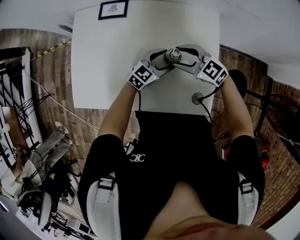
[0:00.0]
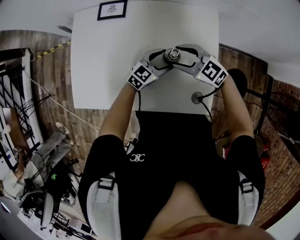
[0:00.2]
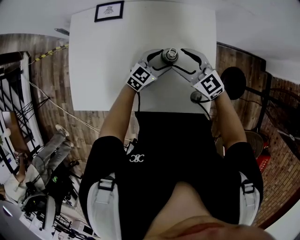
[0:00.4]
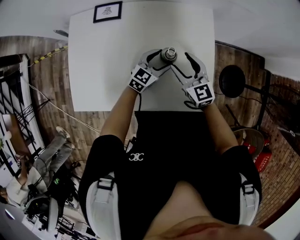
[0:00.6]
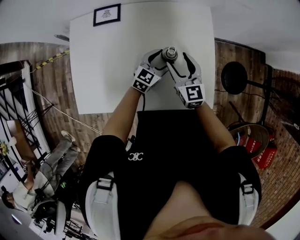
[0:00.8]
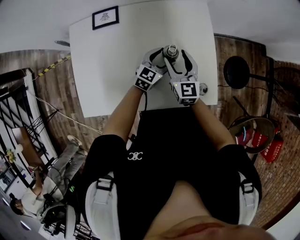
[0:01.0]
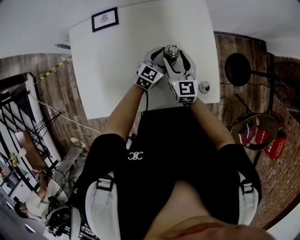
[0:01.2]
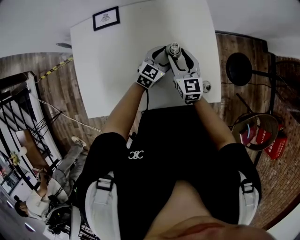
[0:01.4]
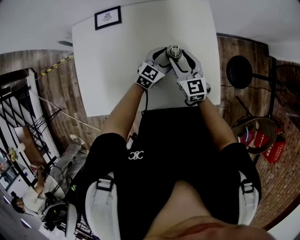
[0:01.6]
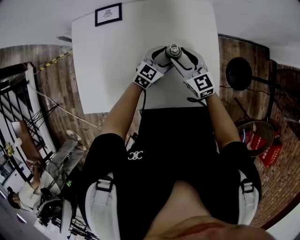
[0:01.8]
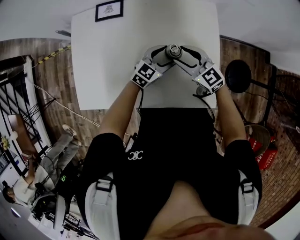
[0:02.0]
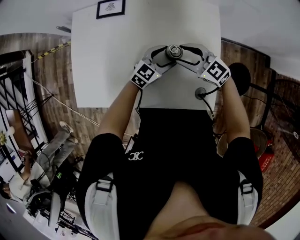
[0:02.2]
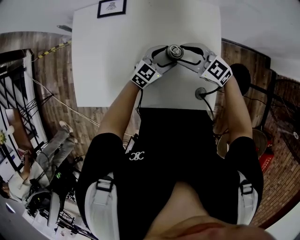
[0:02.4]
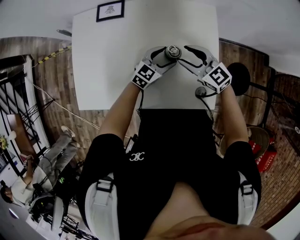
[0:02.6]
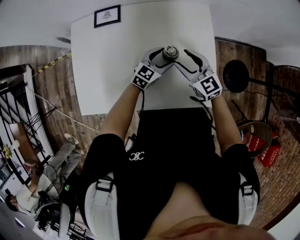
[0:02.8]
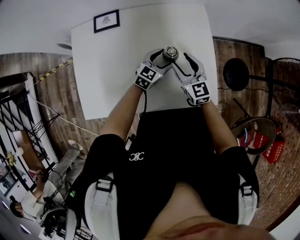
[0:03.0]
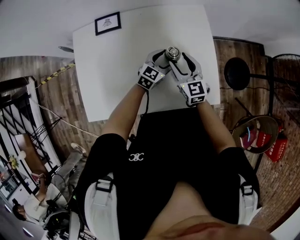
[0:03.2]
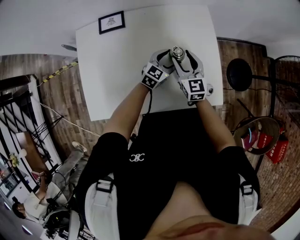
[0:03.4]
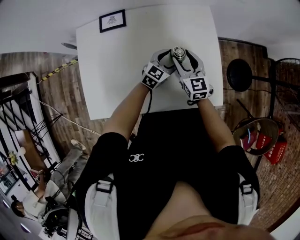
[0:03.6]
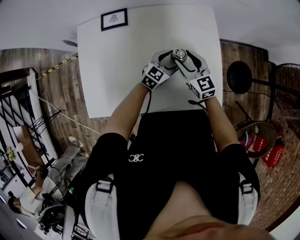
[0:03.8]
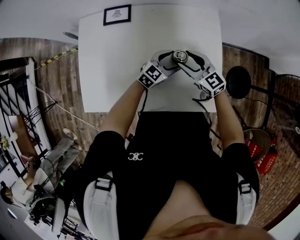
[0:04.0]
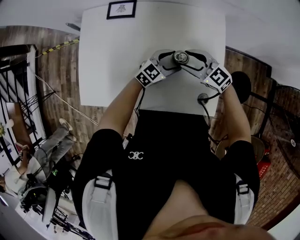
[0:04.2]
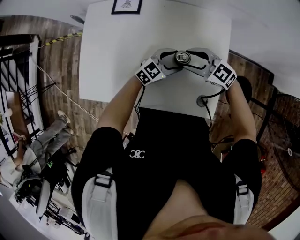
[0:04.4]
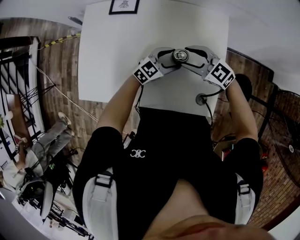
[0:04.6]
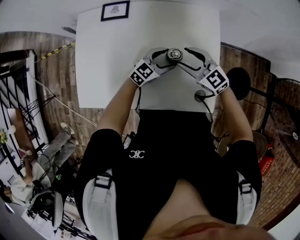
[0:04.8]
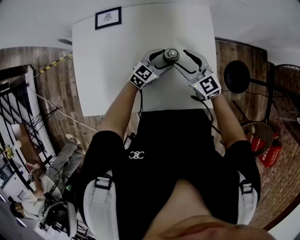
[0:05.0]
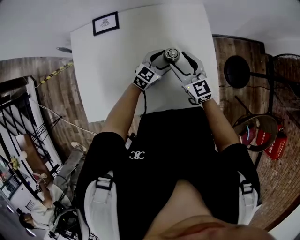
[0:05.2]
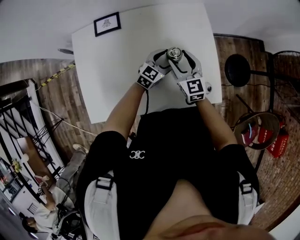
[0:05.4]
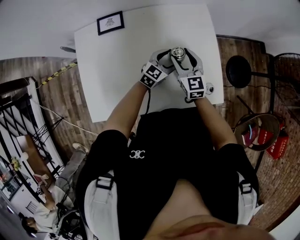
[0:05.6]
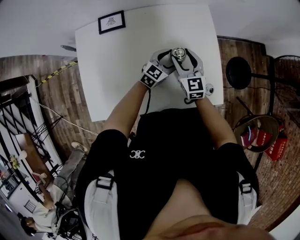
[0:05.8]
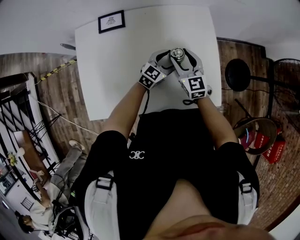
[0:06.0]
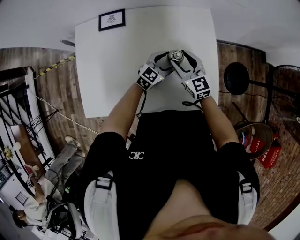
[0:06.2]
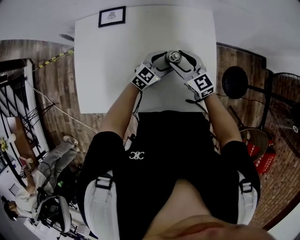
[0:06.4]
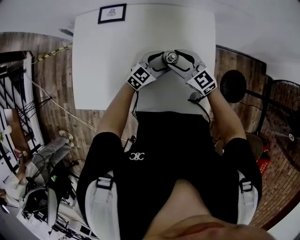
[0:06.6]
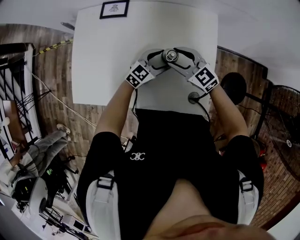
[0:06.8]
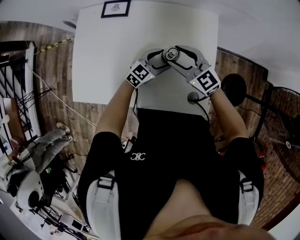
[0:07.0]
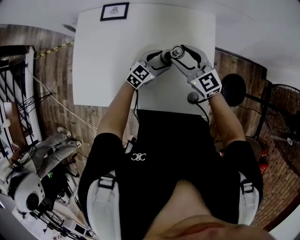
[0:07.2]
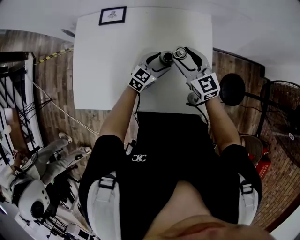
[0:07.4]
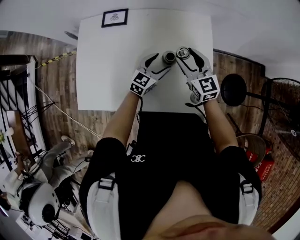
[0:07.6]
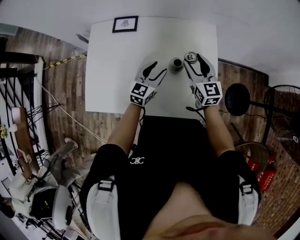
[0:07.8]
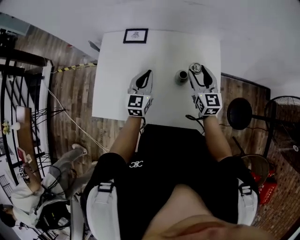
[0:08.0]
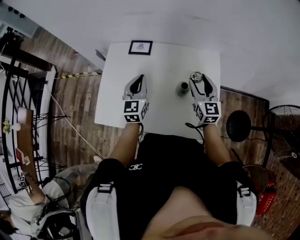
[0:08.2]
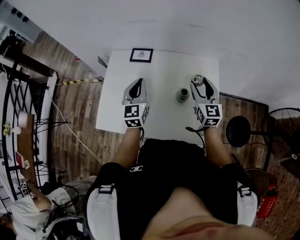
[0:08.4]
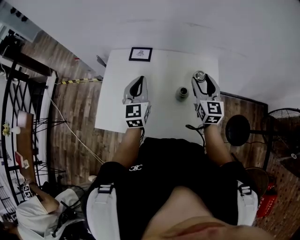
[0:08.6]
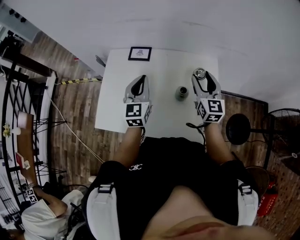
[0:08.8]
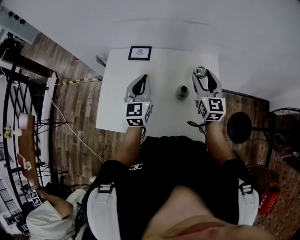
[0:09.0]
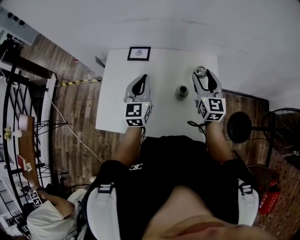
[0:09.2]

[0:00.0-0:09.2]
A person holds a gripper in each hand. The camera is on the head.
0:00.0 to 0:01.6: The right gripper changes its angle by approximately 50 degrees.
0:03.0 to 0:04.6: The right gripper turns by some 50 degrees.
0:04.6 to 0:06.2: The right gripper turns by approximately 40 degrees.
0:06.2 to 0:07.6: The right gripper is displaced upward by about 5 cm.
0:07.6 to 0:09.2: The left gripper heads upward and to the left, covering roughly 25 cm, swivels about 40 degrees, and closes up; the right gripper travels upward by approximately 10 cm.

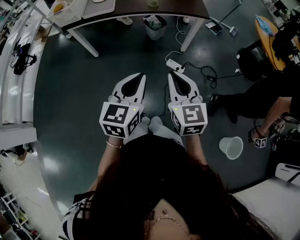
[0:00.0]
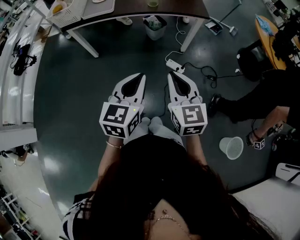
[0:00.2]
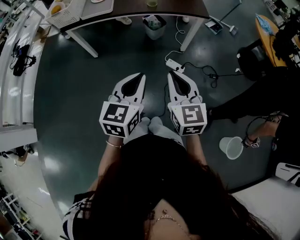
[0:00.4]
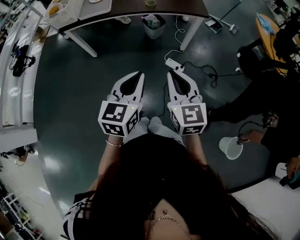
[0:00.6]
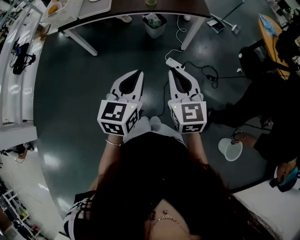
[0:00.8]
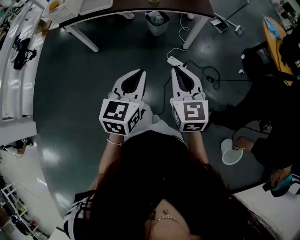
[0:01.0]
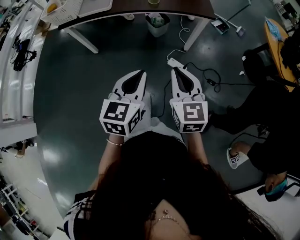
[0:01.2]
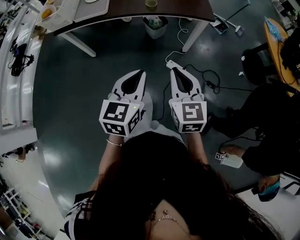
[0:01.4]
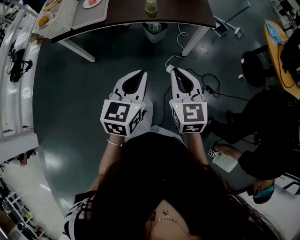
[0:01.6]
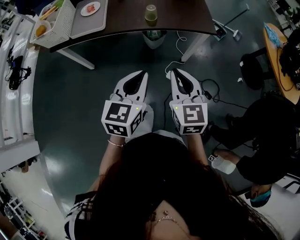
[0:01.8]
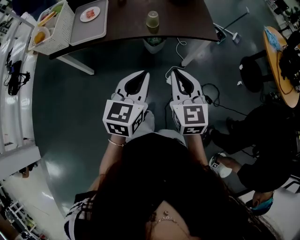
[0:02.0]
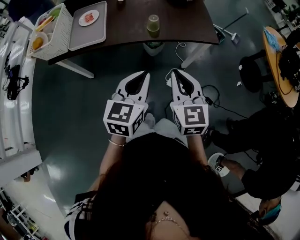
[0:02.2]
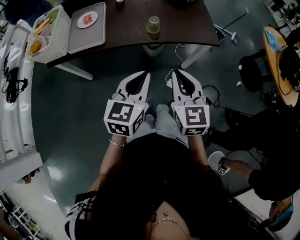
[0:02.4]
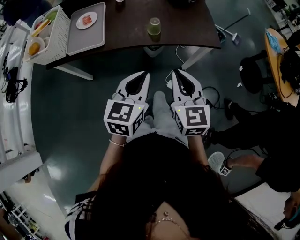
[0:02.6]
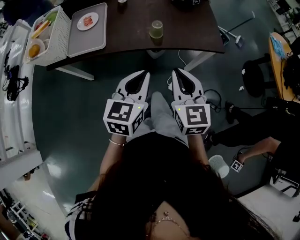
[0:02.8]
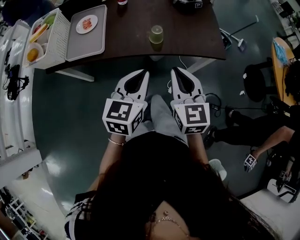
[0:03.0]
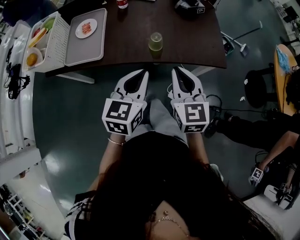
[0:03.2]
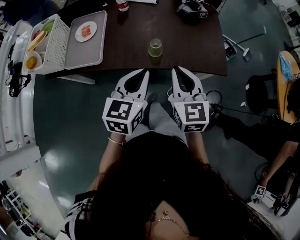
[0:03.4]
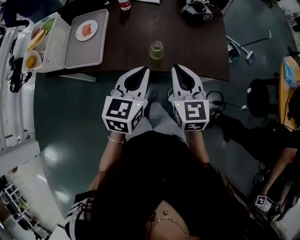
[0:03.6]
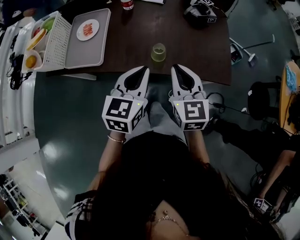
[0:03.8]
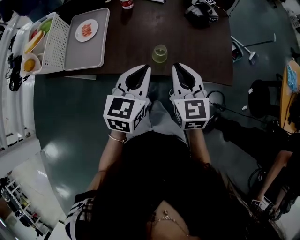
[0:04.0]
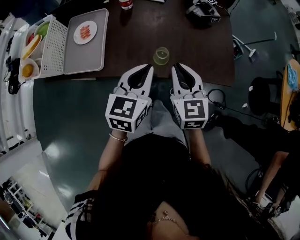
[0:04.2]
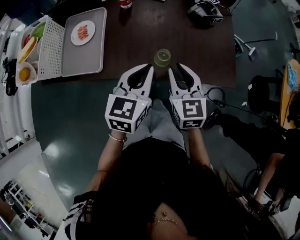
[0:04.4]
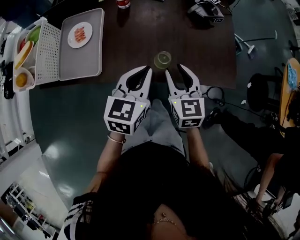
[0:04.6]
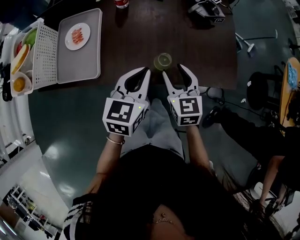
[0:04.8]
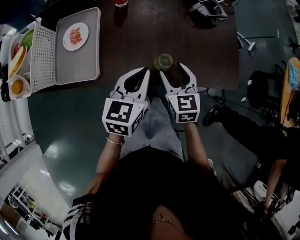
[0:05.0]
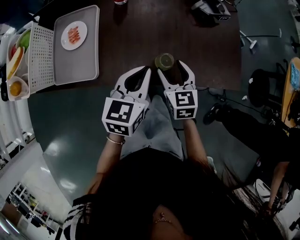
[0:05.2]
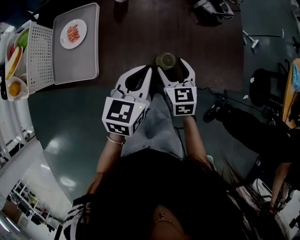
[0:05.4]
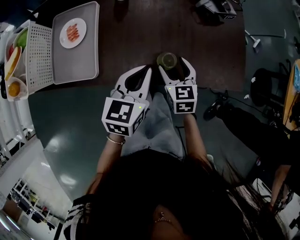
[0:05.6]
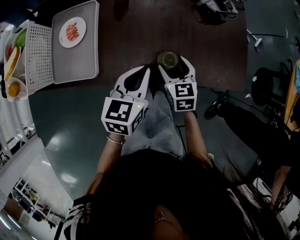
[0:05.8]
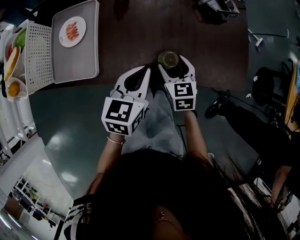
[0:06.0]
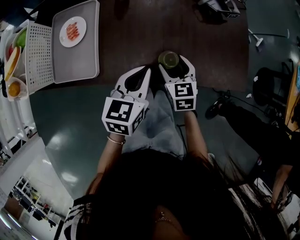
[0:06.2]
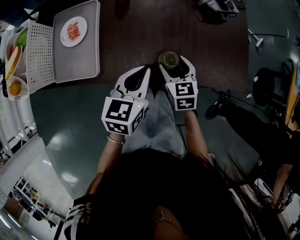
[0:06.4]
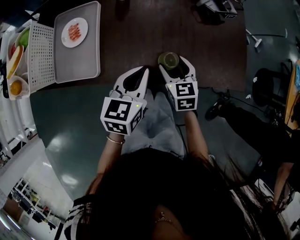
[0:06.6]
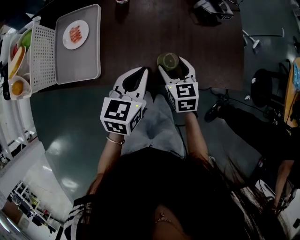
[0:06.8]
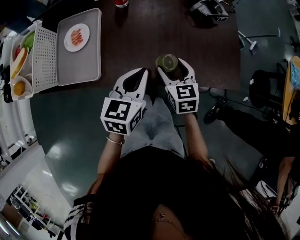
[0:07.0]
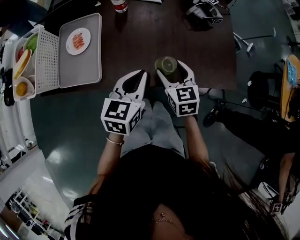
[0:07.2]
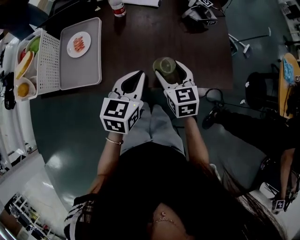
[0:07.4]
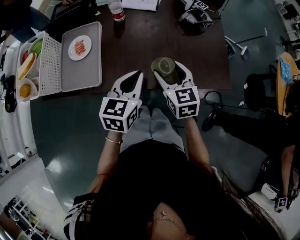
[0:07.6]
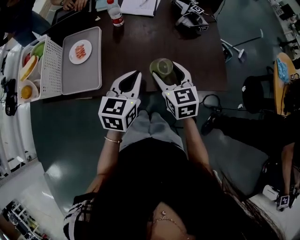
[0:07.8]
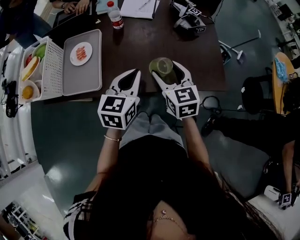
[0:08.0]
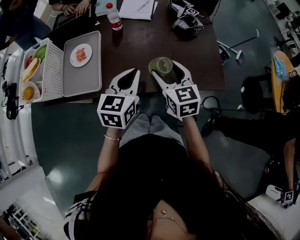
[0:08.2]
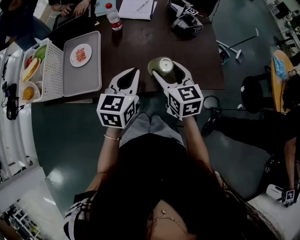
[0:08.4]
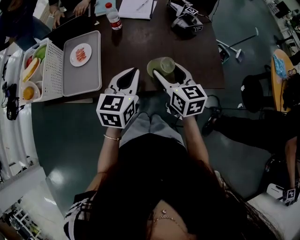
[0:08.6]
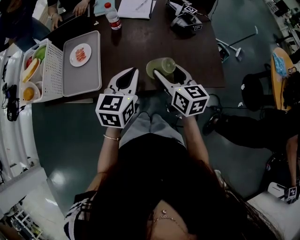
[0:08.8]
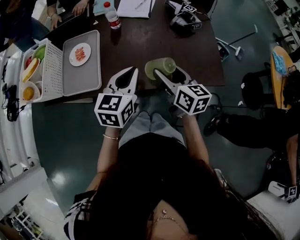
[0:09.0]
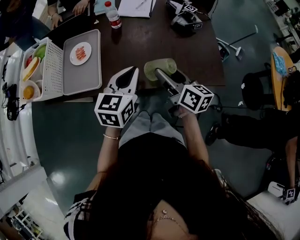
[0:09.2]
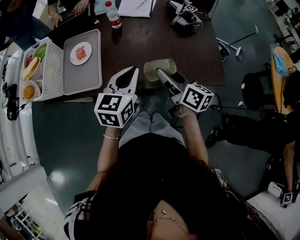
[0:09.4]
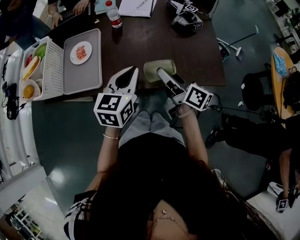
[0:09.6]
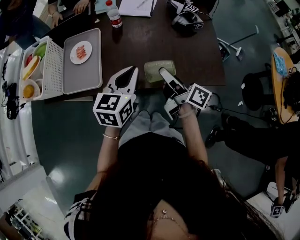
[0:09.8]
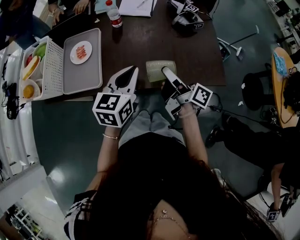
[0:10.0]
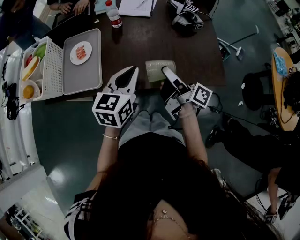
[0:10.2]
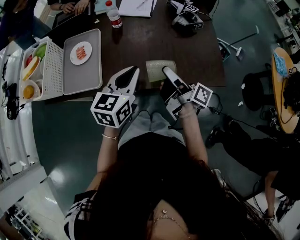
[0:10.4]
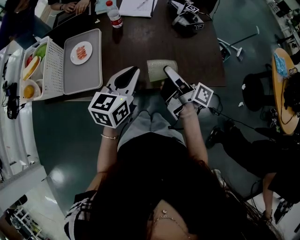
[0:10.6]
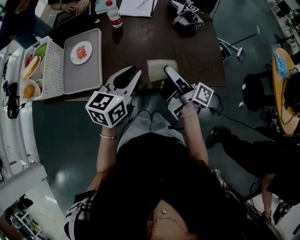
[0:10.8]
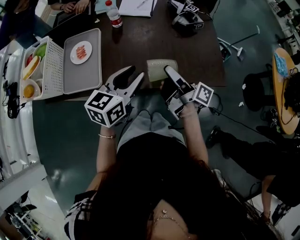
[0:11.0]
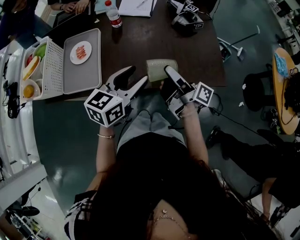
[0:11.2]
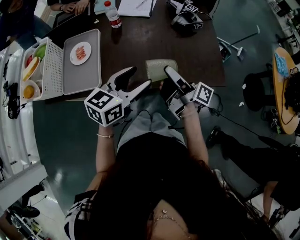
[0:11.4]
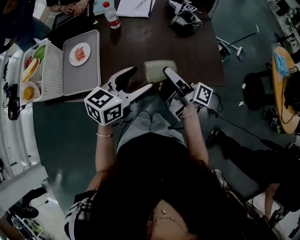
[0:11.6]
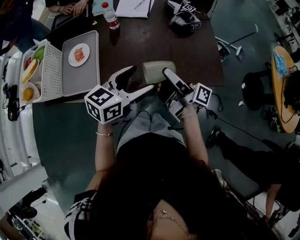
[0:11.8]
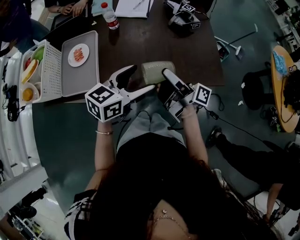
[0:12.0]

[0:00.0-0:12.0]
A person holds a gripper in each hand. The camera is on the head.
0:00.0 to 0:01.6: Both grippers move forward, roughly 20 cm.
0:01.6 to 0:03.0: Both grippers move forward, some 25 cm.
0:03.0 to 0:04.4: Both grippers travel together forward, about 20 cm.
0:04.4 to 0:06.0: The right gripper goes some 15 cm downward and forward, and opens up. Meanwhile the left gripper shifts approximately 10 cm downward.
0:06.0 to 0:07.6: The right gripper moves upward, some 15 cm. The left gripper heads upward, covering approximately 5 cm.
0:07.6 to 0:09.0: The right gripper turns by roughly 30 degrees.
0:09.0 to 0:10.4: The right gripper twists approximately 50 degrees clockwise, seen from behind.
0:10.4 to 0:12.0: The left gripper shifts about 5 cm to the right, swivels about 20 degrees, and opens.

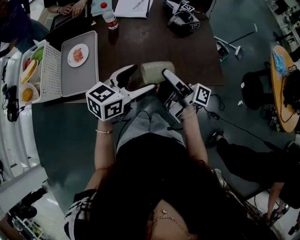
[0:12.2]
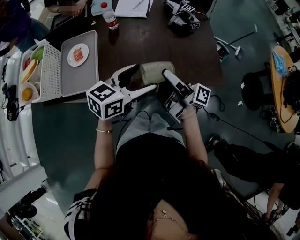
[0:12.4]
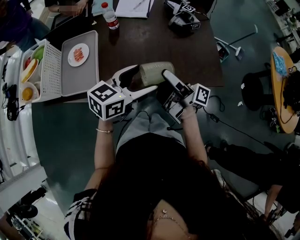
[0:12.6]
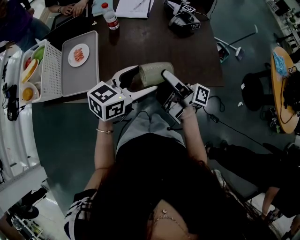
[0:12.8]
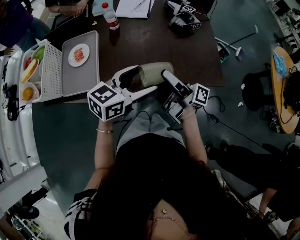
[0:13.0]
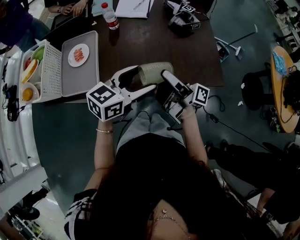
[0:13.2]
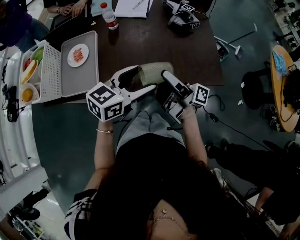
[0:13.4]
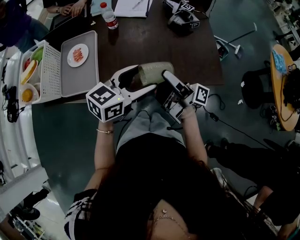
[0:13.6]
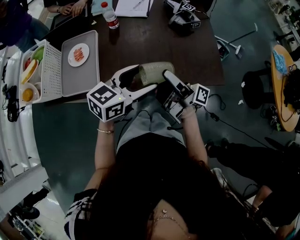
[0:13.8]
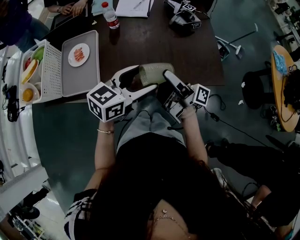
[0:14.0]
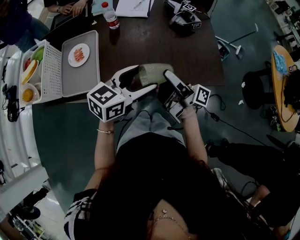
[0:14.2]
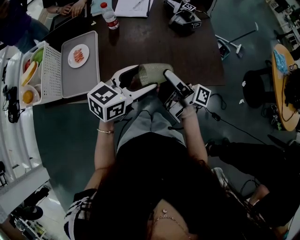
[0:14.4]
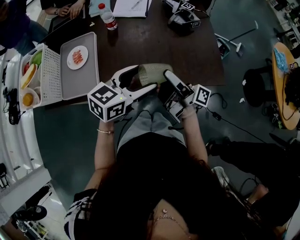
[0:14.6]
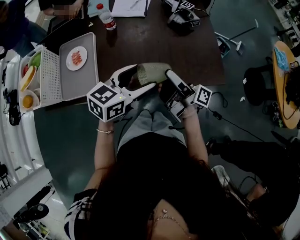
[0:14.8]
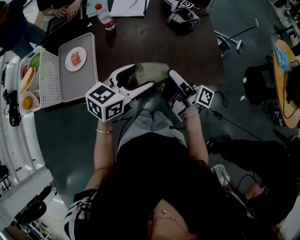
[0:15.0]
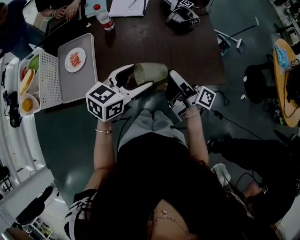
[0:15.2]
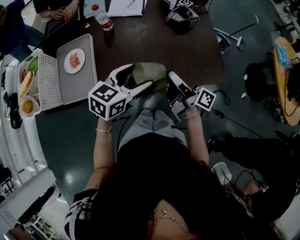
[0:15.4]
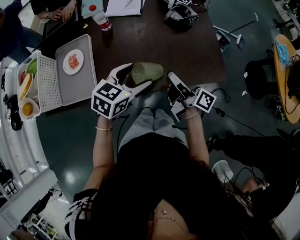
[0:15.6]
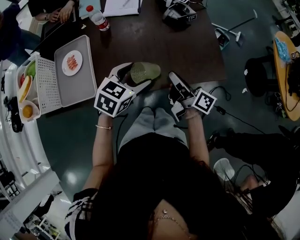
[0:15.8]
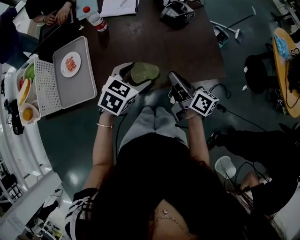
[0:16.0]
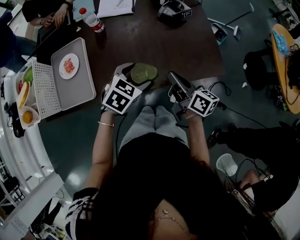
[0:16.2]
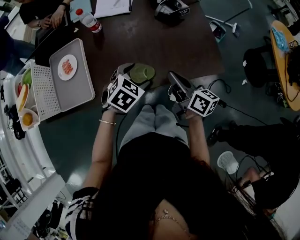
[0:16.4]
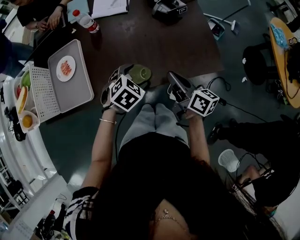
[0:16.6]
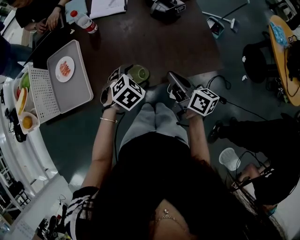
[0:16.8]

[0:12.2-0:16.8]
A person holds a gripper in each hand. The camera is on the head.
0:12.2 to 0:13.8: The grippers make only small movements.
0:13.8 to 0:15.2: The right gripper is displaced downward by approximately 5 cm.
0:15.2 to 0:16.8: The left gripper moves downward, some 15 cm, and points its fingers approximately 40 degrees further downward; the right gripper ends up some 5 cm from where it was, swivels about 40 degrees, and closes up.
